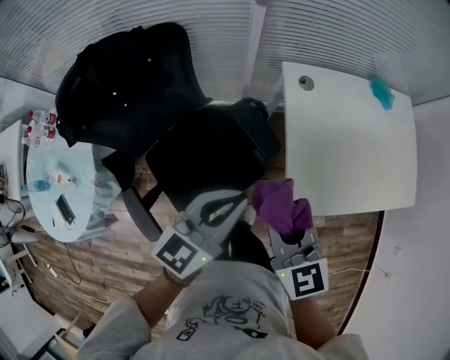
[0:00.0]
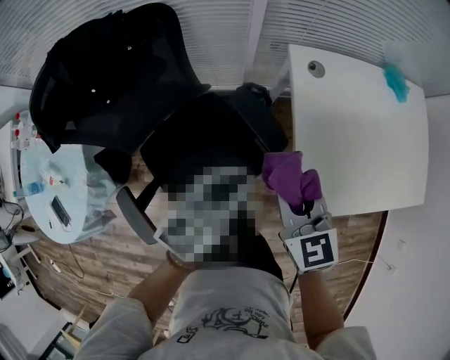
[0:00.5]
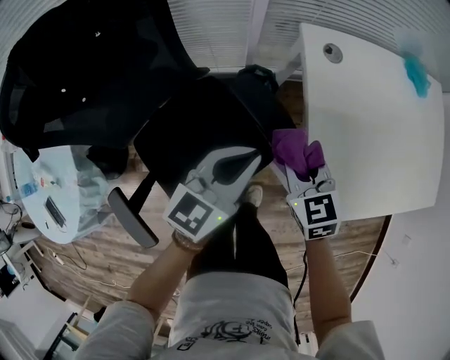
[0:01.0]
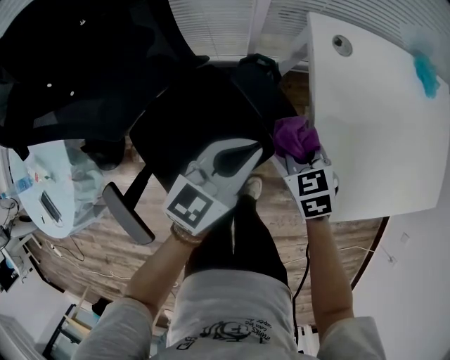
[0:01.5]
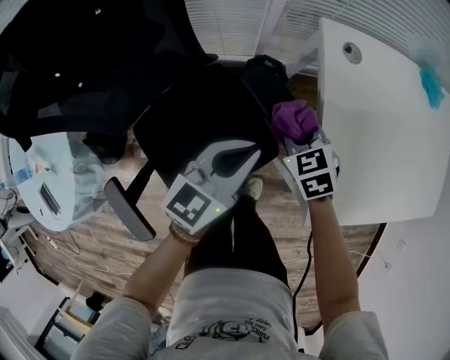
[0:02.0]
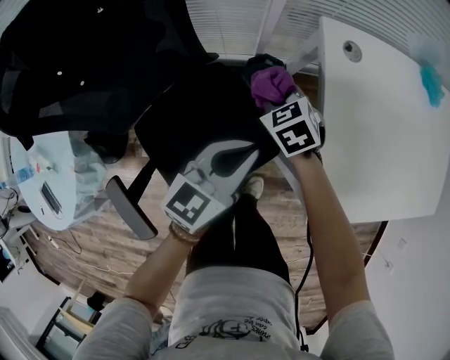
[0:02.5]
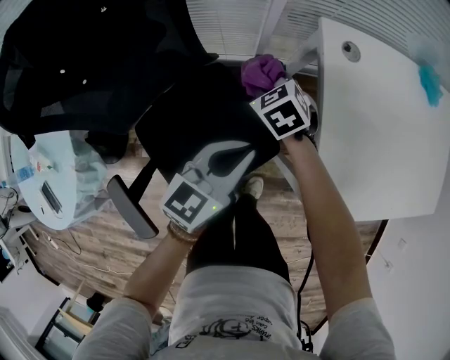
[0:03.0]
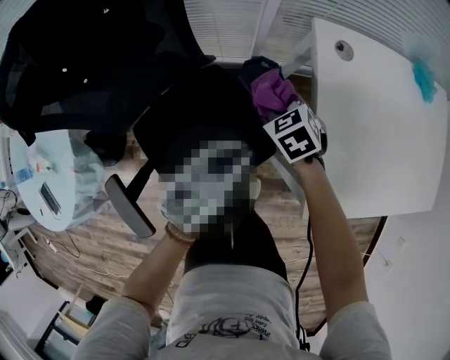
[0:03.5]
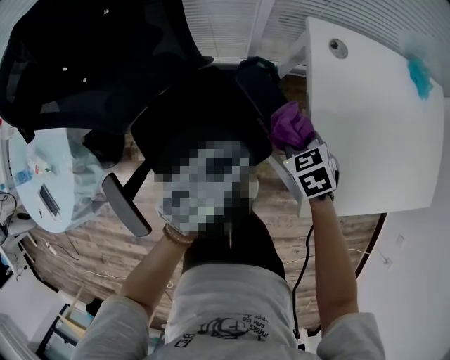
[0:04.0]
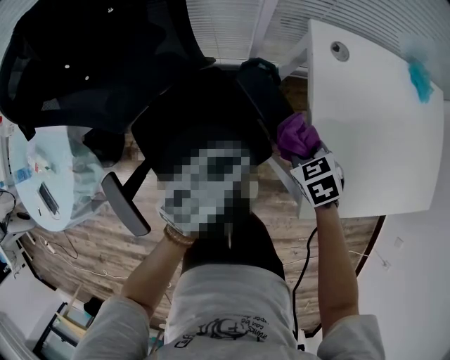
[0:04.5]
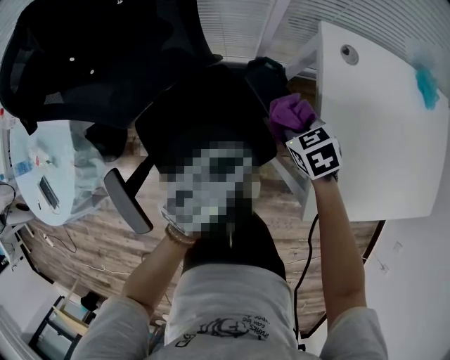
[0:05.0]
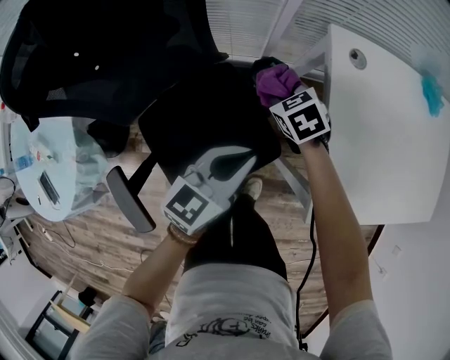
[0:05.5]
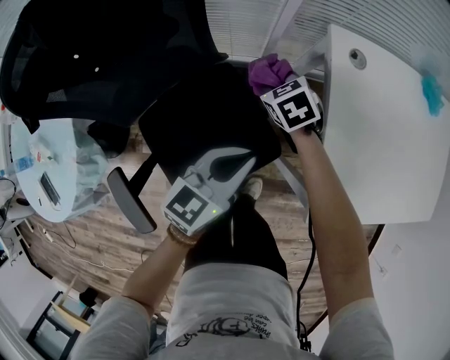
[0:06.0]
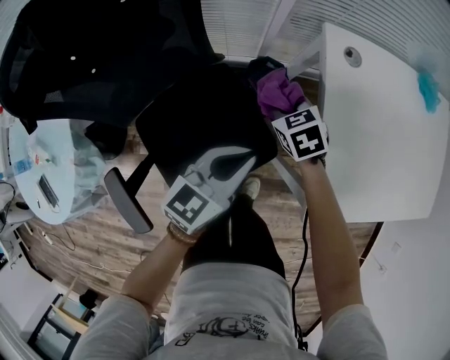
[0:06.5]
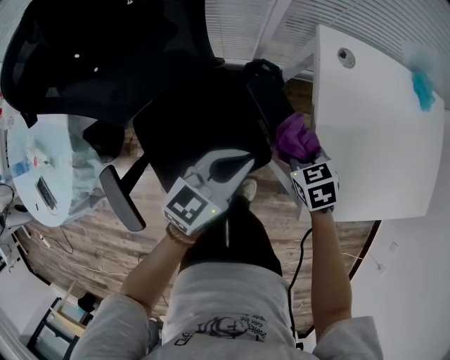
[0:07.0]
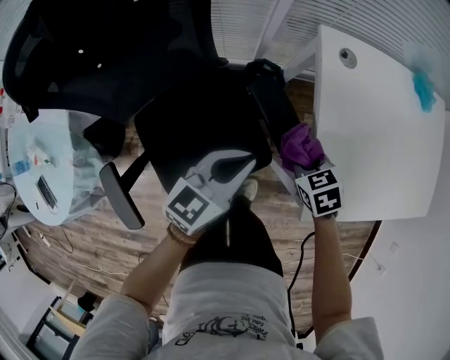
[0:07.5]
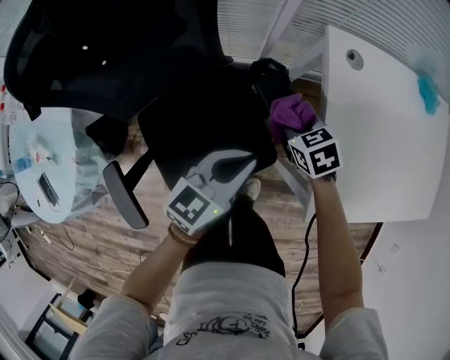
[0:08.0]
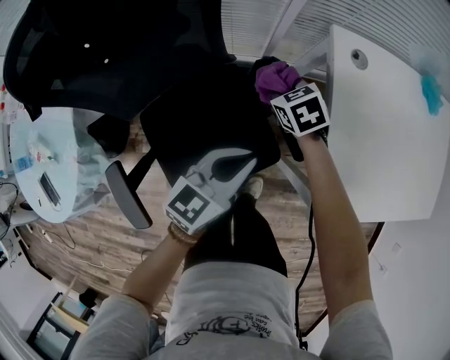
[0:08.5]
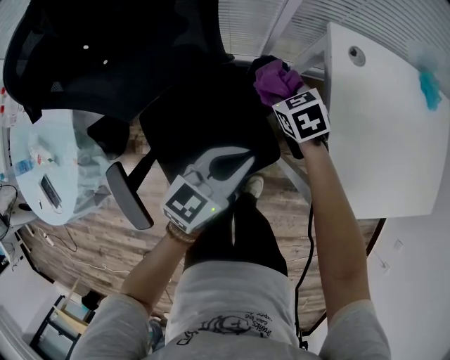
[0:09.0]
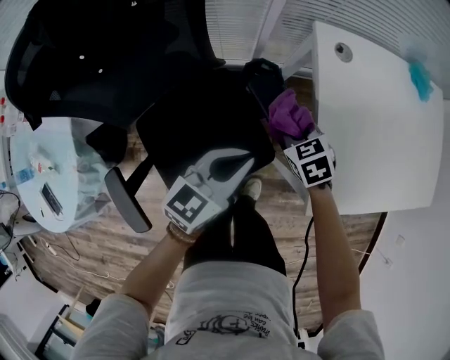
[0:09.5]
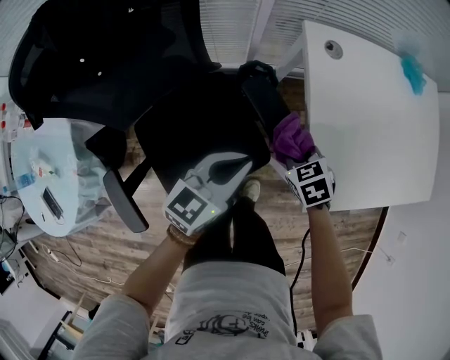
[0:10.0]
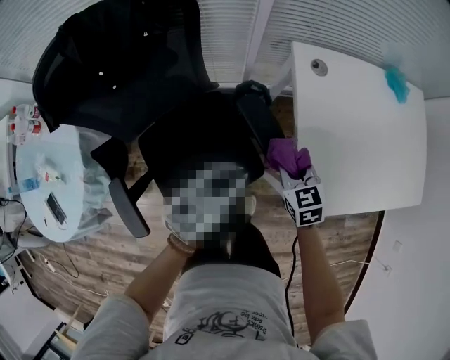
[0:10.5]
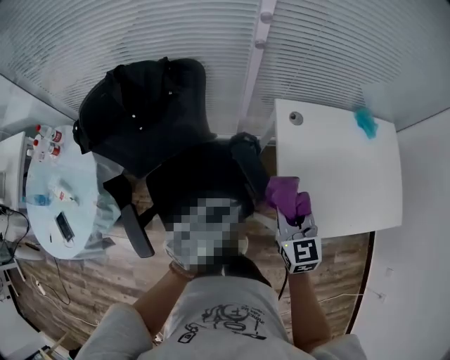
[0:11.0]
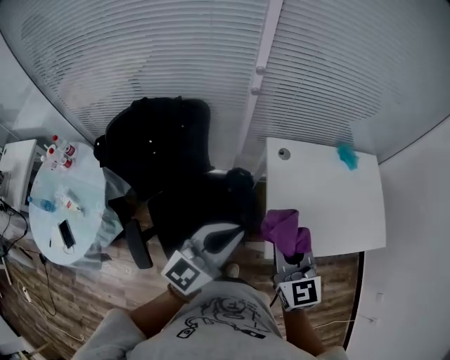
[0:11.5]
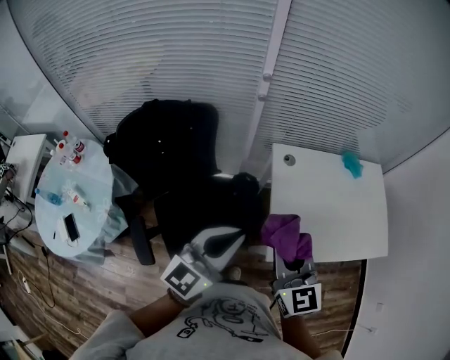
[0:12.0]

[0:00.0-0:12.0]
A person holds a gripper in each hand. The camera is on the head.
0:00.0 to 0:02.0: The two grippers go roughly 30 cm downward and forward. The right gripper tips its fingers downward by roughly 30 degrees.
0:02.0 to 0:04.0: The right gripper travels forward and back again, approximately 10 cm each way.
0:04.0 to 0:06.0: The right gripper moves forward and to the left, about 20 cm.
0:06.0 to 0:08.0: The right gripper travels backward and to the right by some 10 cm.
0:08.0 to 0:10.0: The right gripper moves backward and to the right, roughly 10 cm.
0:10.0 to 0:12.0: Both grippers move upward, some 40 cm. The left gripper turns by about 30 degrees; the right gripper points its fingers about 50 degrees further upward.

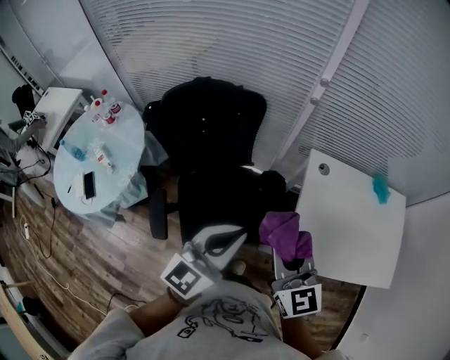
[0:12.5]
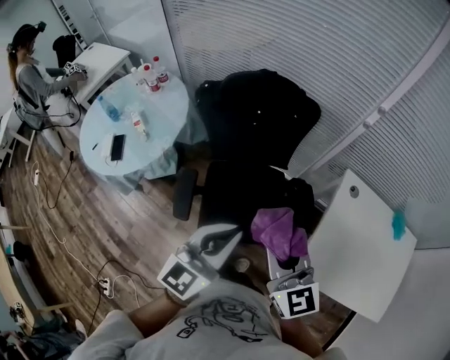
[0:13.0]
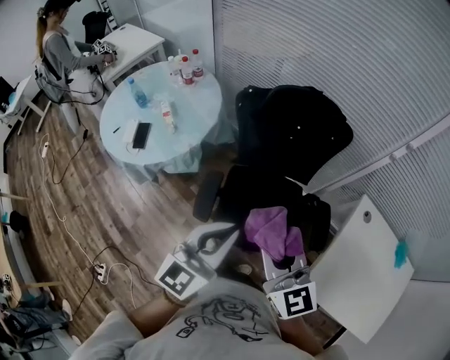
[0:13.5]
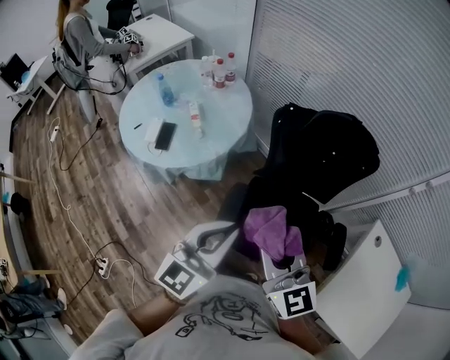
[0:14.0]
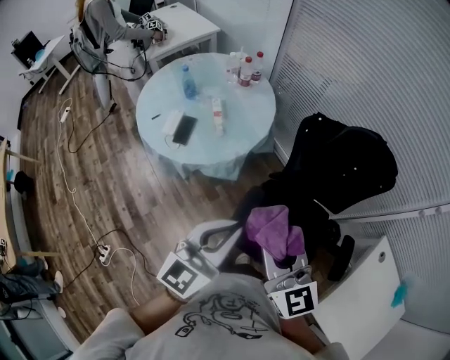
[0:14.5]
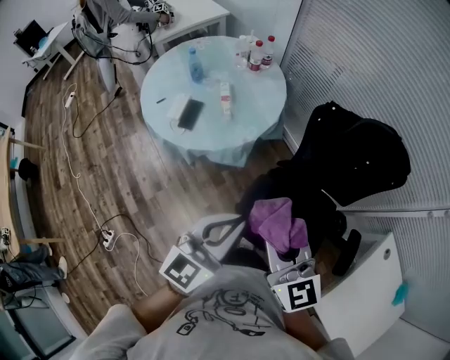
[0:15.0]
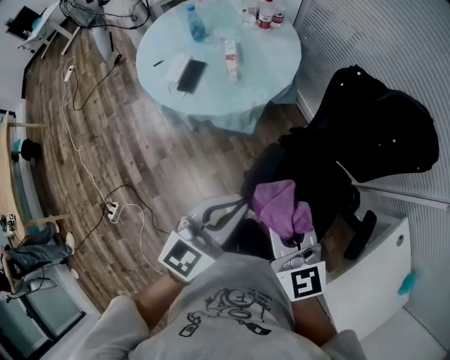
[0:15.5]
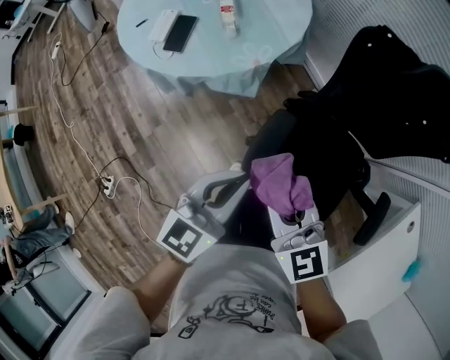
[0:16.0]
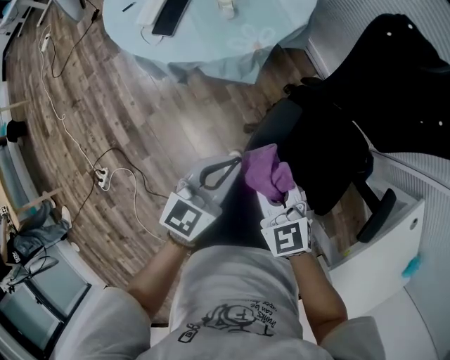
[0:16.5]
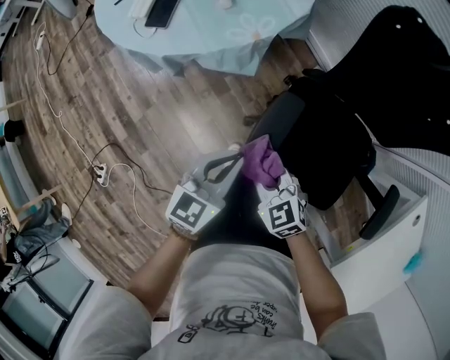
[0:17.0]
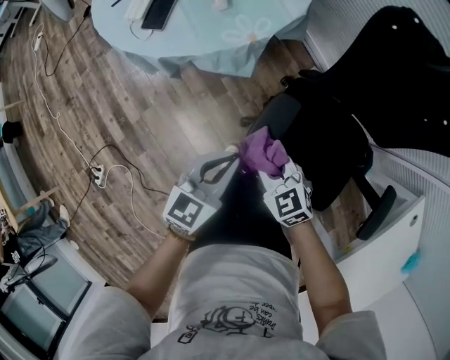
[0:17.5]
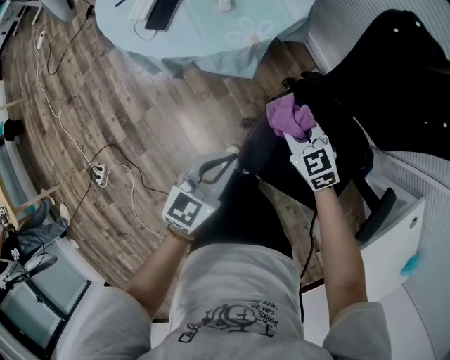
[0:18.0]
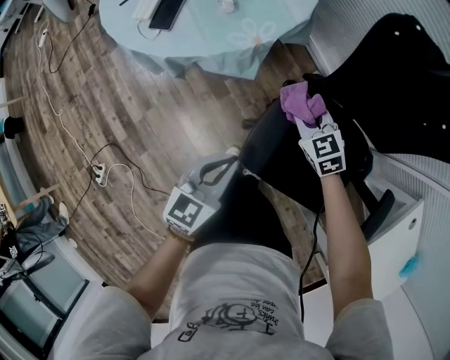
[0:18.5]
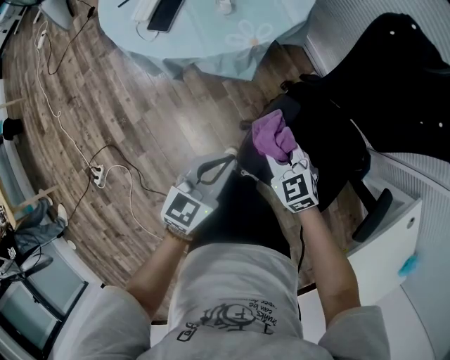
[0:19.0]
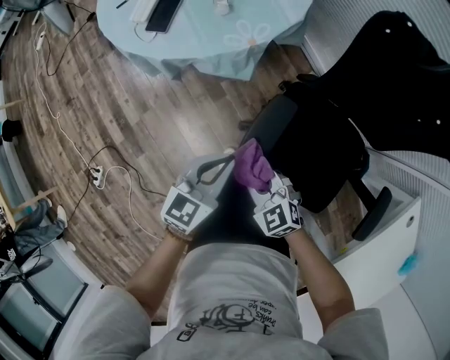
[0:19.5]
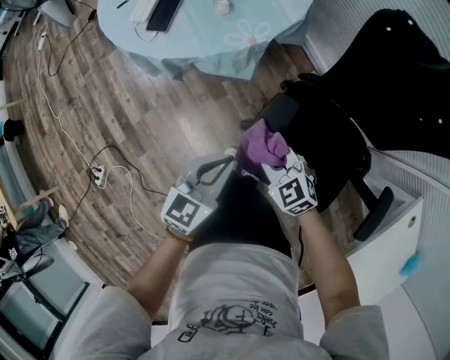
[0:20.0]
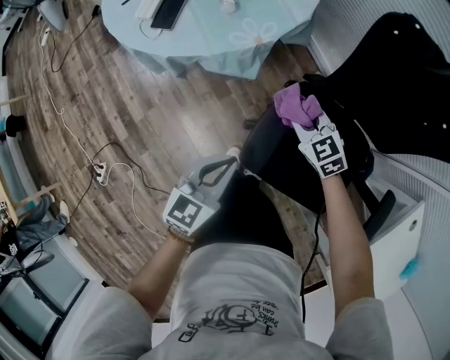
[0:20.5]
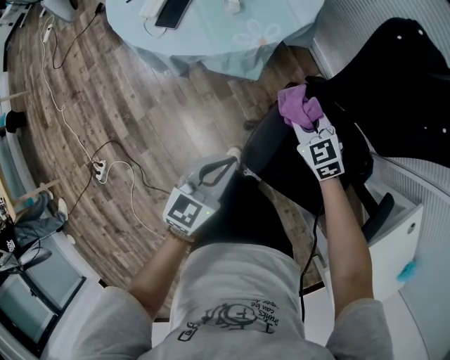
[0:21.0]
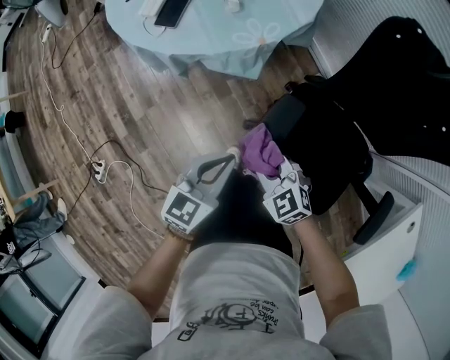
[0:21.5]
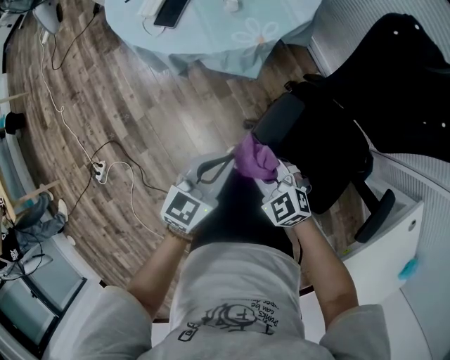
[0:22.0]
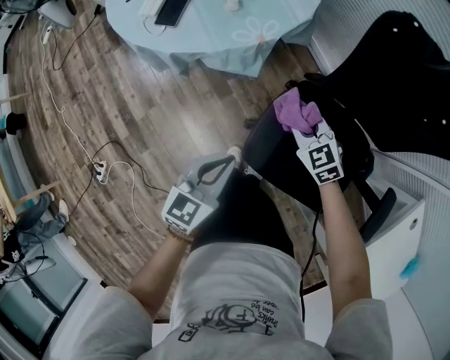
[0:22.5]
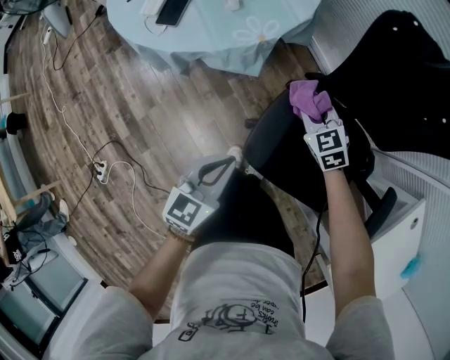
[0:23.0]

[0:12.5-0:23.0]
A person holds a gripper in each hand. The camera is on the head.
0:12.5 to 0:14.5: The two grippers travel together, approximately 40 cm. The left gripper changes its angle by roughly 40 degrees, while the right gripper changes its angle by about 40 degrees.
0:14.5 to 0:16.5: Both grippers travel together downward, approximately 35 cm. The right gripper rotates some 30 degrees, while the left gripper swivels approximately 20 degrees.
0:16.5 to 0:19.0: The right gripper is displaced downward by some 10 cm, and travels forward and back again, some 15 cm each way.
0:19.0 to 0:21.0: The right gripper heads forward, covering about 10 cm.
0:21.0 to 0:23.0: The right gripper reaches roughly 15 cm backward, then returns.

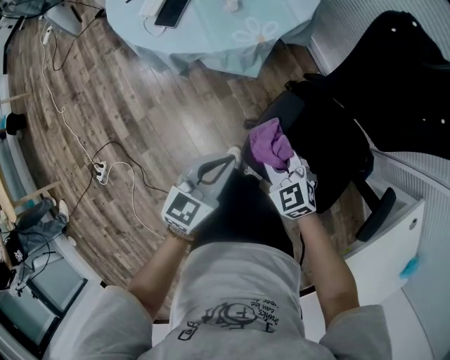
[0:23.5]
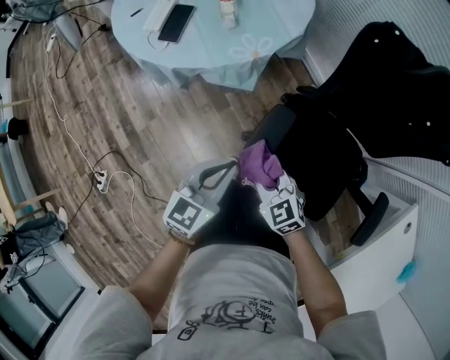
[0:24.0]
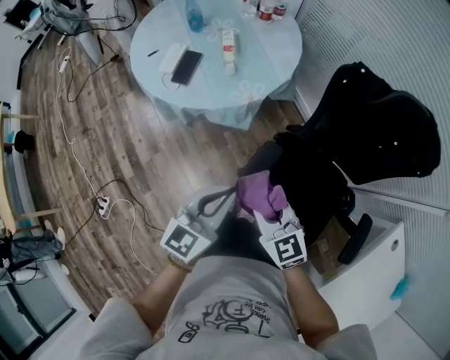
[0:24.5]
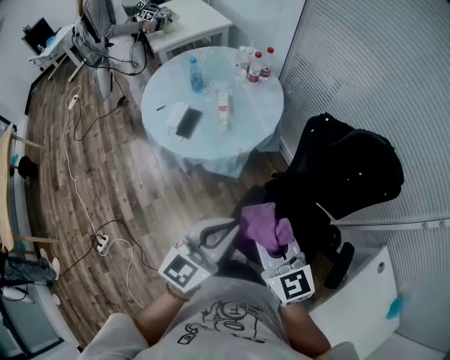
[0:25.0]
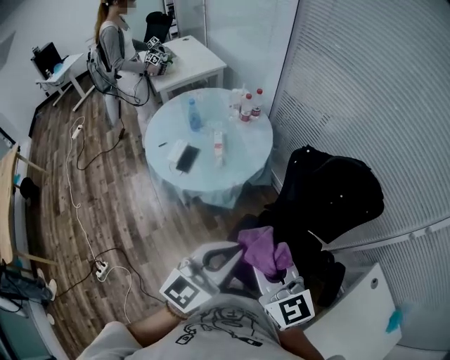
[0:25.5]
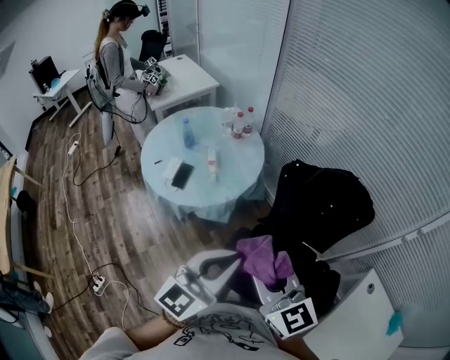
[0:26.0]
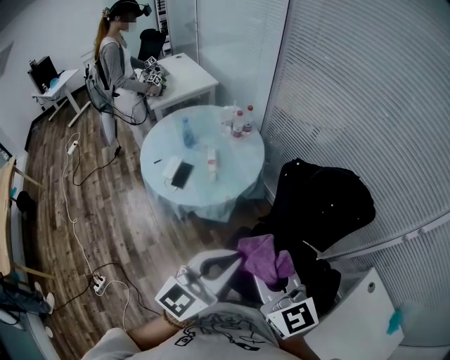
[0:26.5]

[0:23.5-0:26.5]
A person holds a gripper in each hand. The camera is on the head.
0:23.5 to 0:25.0: Both grippers move upward, some 35 cm. The right gripper swivels about 30 degrees, while the left gripper swivels roughly 20 degrees.
0:25.0 to 0:26.5: Both grippers move upward, some 15 cm.

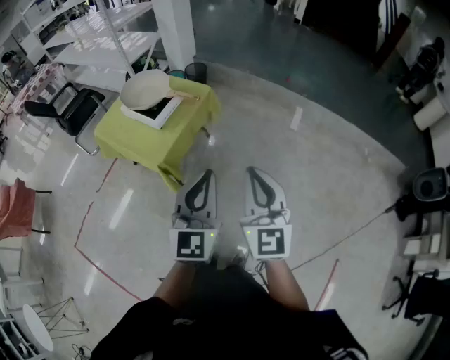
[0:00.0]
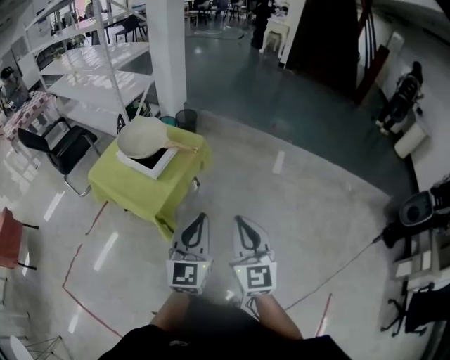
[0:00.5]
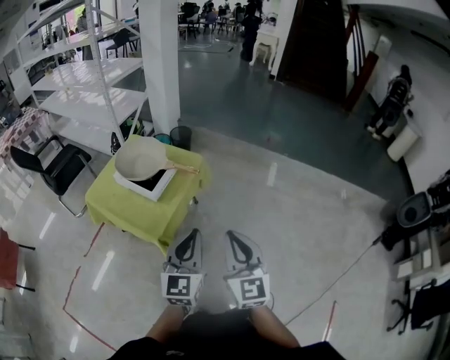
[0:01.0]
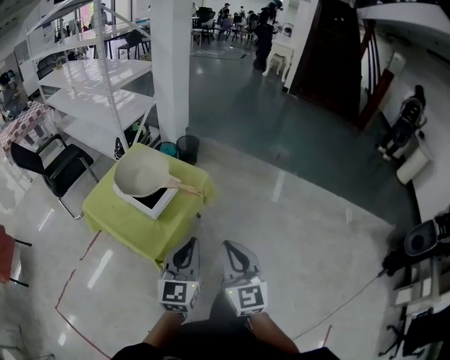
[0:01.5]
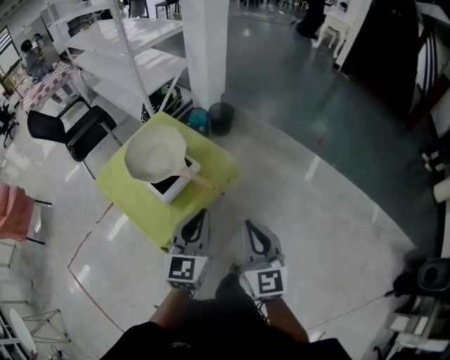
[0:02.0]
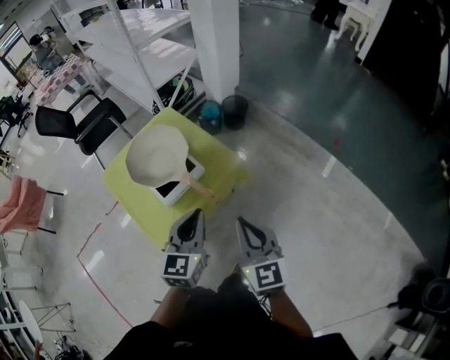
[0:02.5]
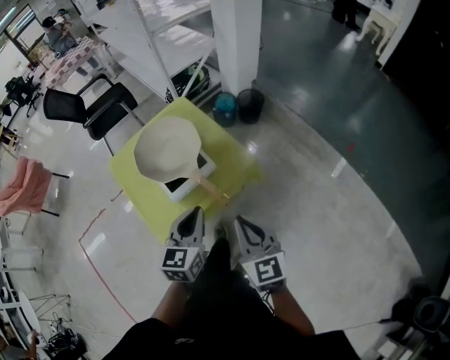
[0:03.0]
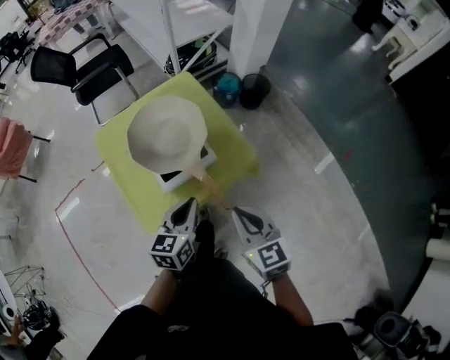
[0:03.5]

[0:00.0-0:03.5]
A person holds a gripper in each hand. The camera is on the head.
0:00.0 to 0:02.0: The grippers both shift forward by approximately 35 cm.
0:02.0 to 0:03.5: Both grippers move forward and downward, roughly 20 cm. The right gripper swivels some 40 degrees; the left gripper turns by about 30 degrees.
